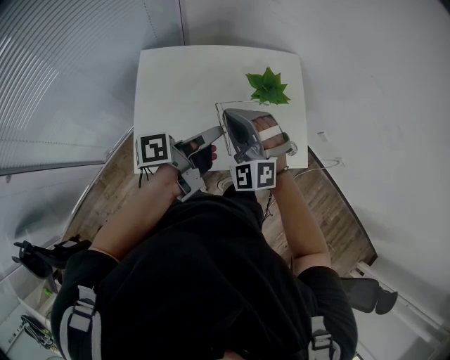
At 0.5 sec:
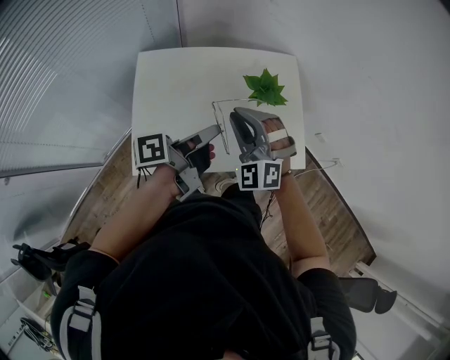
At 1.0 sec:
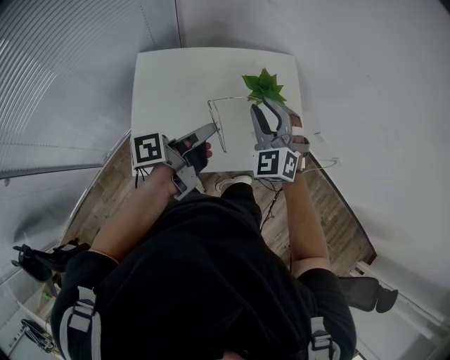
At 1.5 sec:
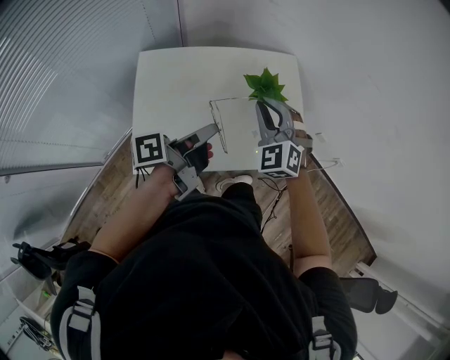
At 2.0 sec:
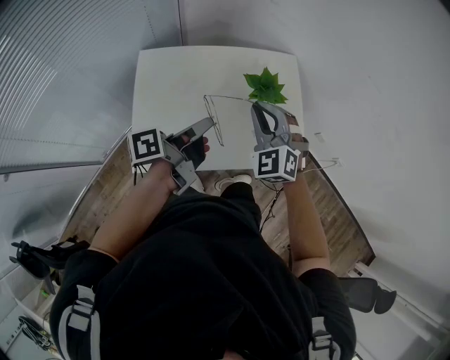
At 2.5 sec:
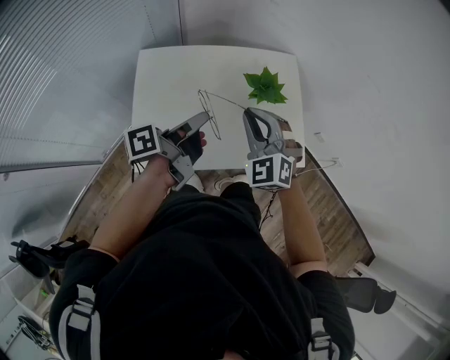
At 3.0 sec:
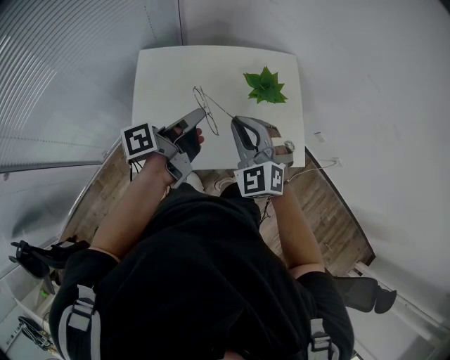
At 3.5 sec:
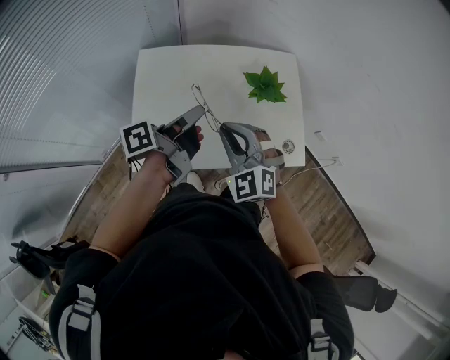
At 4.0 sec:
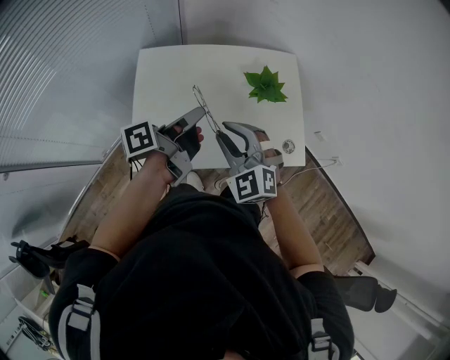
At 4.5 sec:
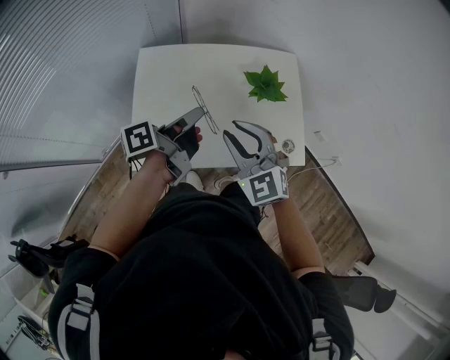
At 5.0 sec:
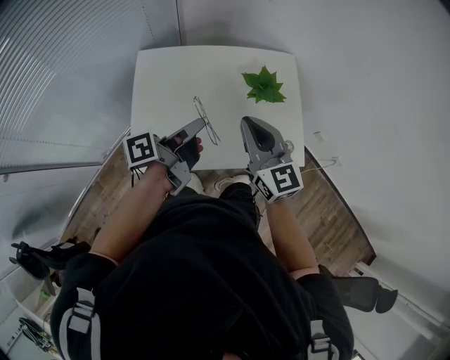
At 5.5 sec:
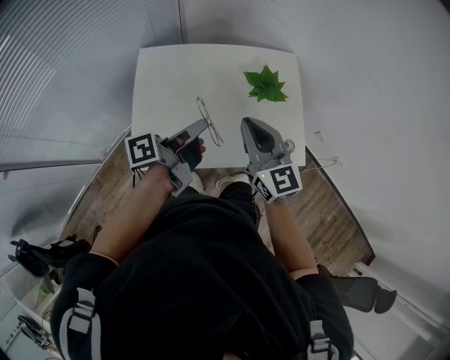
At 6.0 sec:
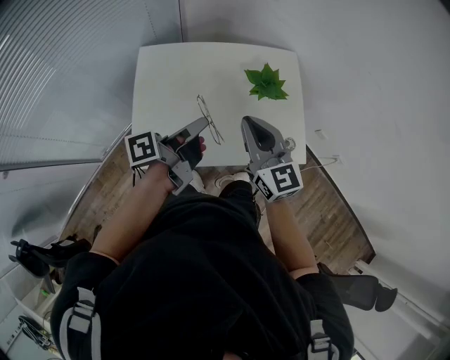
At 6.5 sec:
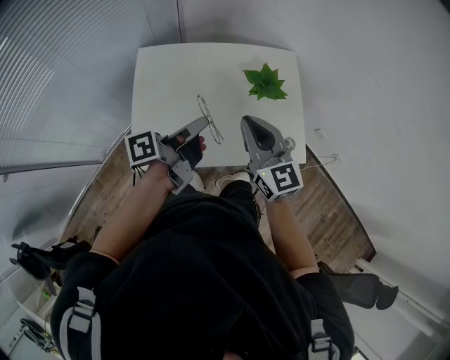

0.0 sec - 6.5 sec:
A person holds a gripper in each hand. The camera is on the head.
0.0 sec - 2.0 sec: The right gripper shifts by roughly 10 cm, and opens and closes again.
2.0 sec - 4.5 sec: The right gripper changes place by about 10 cm, changes its angle by some 20 degrees, and opens.
4.5 sec - 6.5 sec: The right gripper rotates roughly 30 degrees, and closes its fingers.

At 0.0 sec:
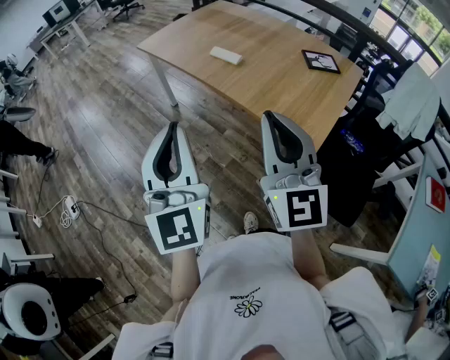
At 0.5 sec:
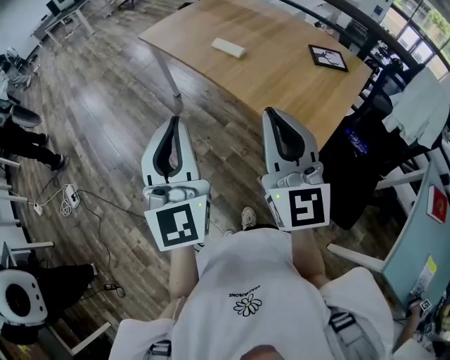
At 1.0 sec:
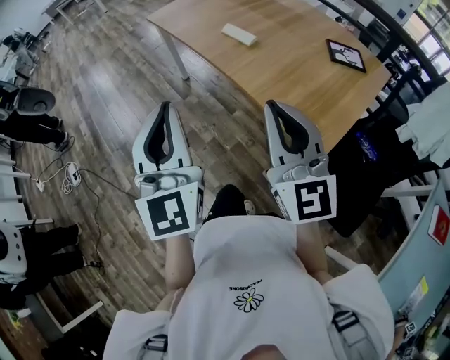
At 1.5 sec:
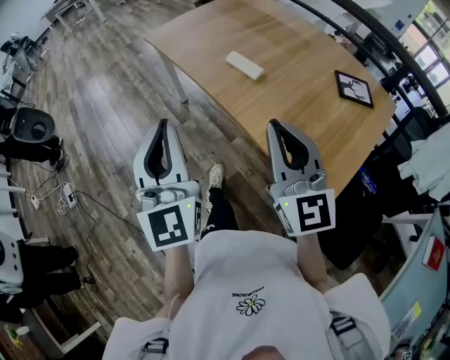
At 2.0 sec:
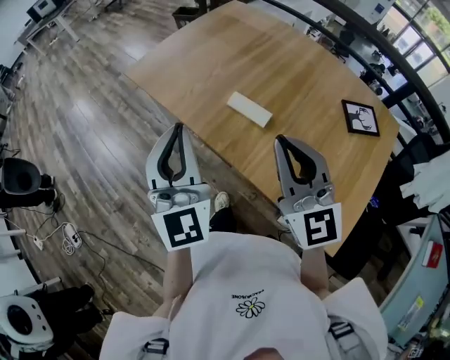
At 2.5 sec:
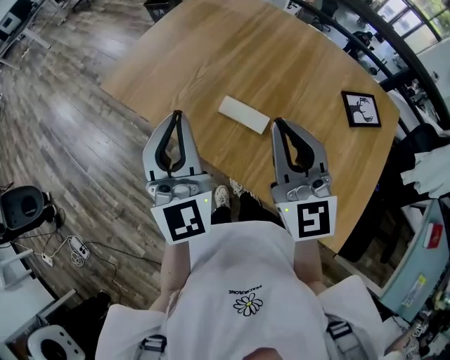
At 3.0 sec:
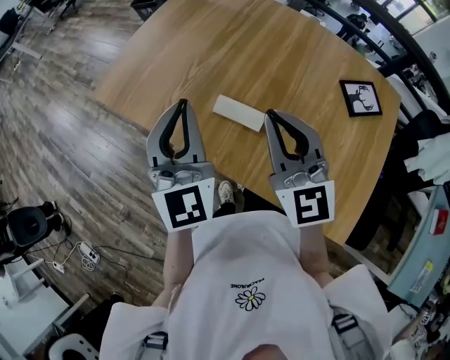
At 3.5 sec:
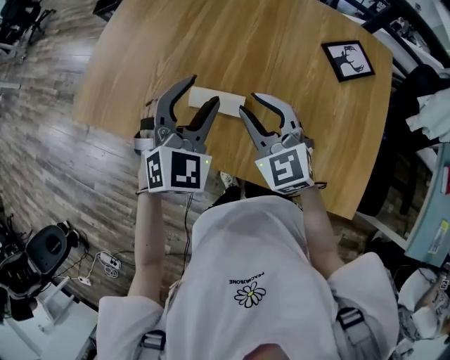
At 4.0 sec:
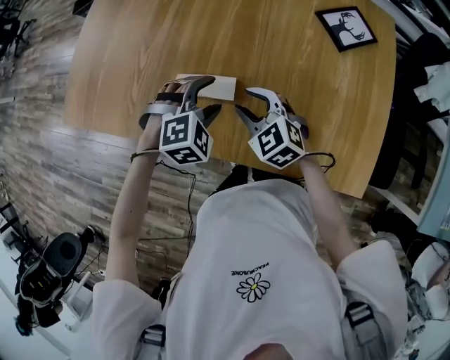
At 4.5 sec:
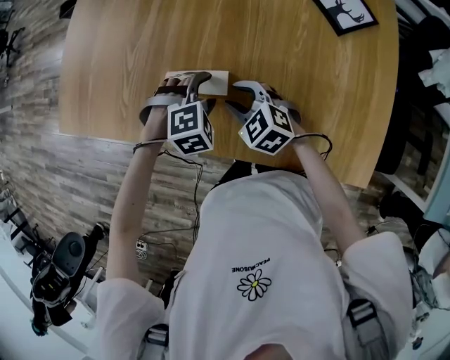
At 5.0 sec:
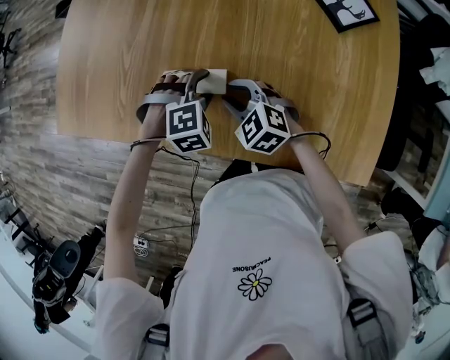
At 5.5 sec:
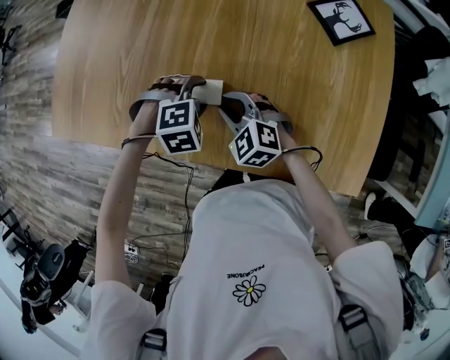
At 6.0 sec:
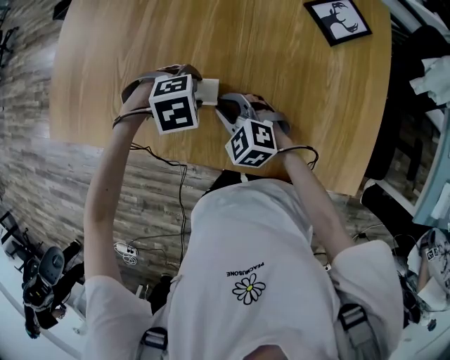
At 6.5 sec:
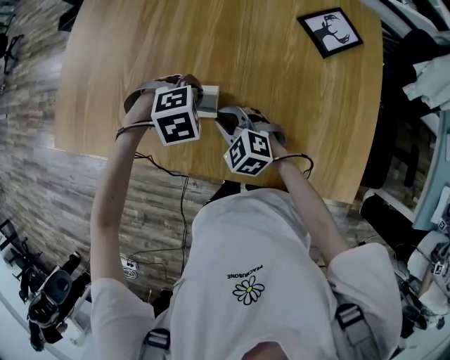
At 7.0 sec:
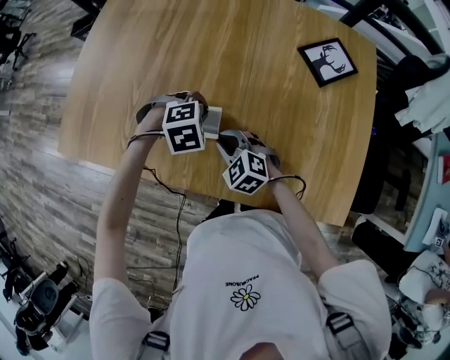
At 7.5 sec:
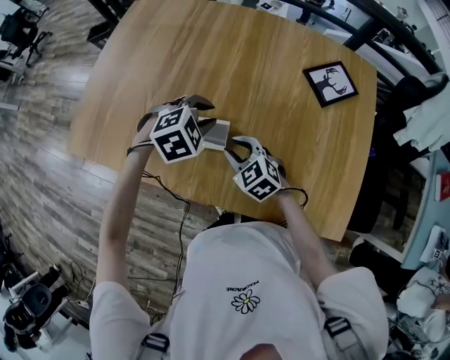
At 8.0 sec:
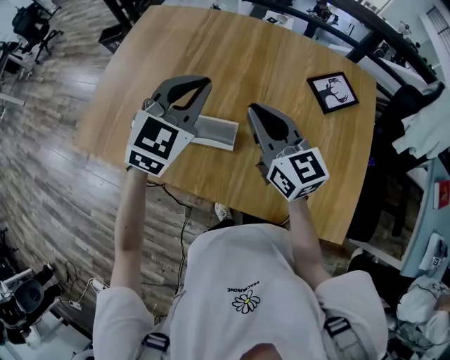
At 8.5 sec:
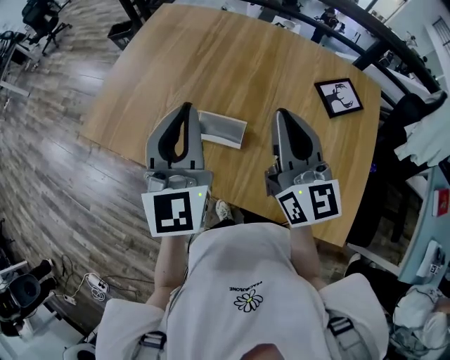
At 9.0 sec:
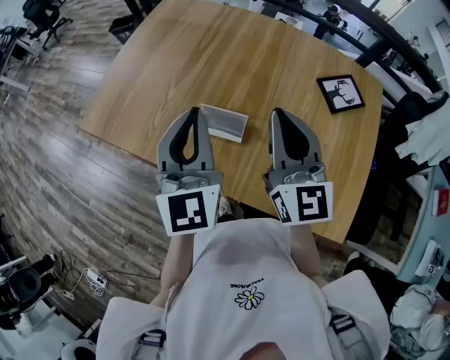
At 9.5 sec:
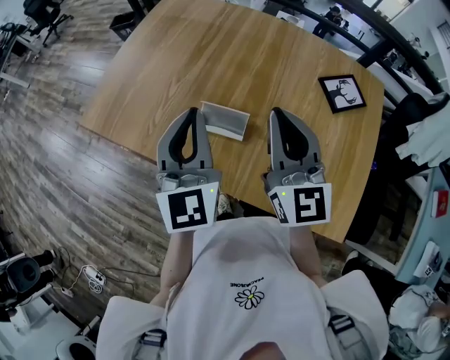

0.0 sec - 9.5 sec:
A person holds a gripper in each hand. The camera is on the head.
0.0 sec - 2.0 sec: The two grippers go some 40 cm forward.
2.0 sec - 4.0 sec: The grippers both shift downward by roughly 30 cm. The left gripper tips its fingers downward by about 70 degrees, and opens its fingers, while the right gripper tilts its fingers roughly 40 degrees downward, and opens its fingers.
4.0 sec - 5.5 sec: The right gripper ends up approximately 5 cm from where it was, while the left gripper goes approximately 5 cm downward.
5.5 sec - 7.5 sec: The left gripper moves upward, some 10 cm, and closes its fingers.
7.5 sec - 9.5 sec: The left gripper heads upward and to the left, covering approximately 25 cm, points its fingers about 60 degrees further upward, and closes its fingers. The right gripper travels upward by roughly 30 cm, tips its fingers upward by some 50 degrees, and closes.

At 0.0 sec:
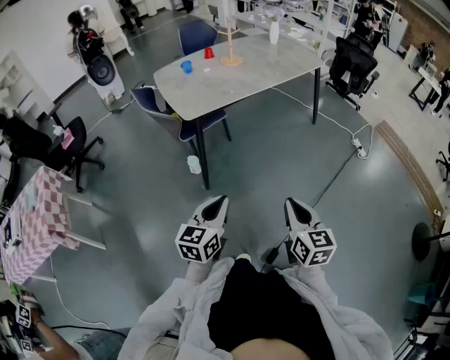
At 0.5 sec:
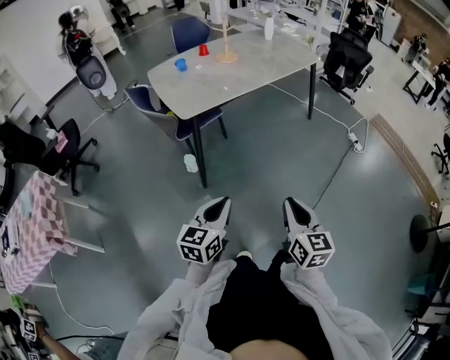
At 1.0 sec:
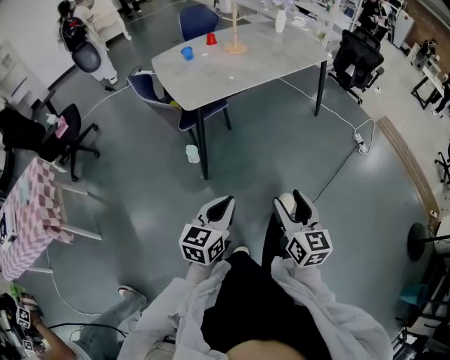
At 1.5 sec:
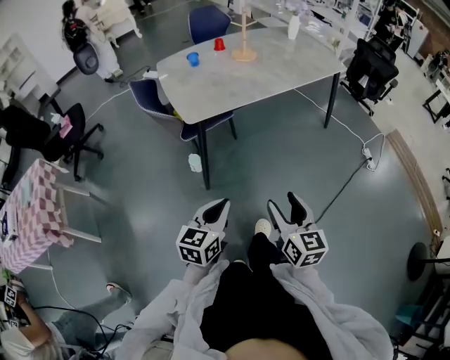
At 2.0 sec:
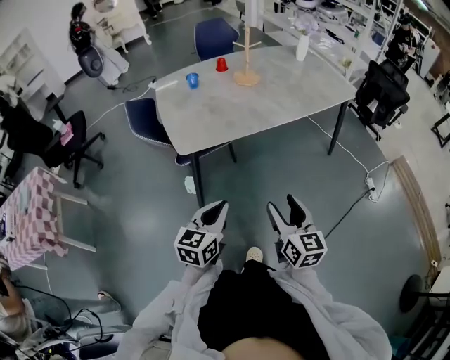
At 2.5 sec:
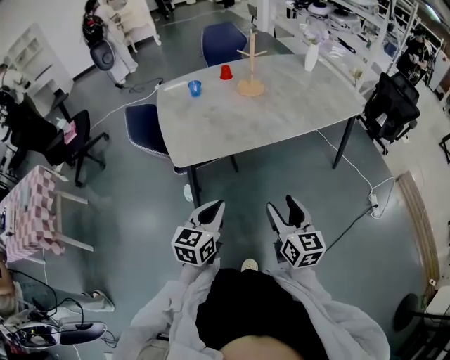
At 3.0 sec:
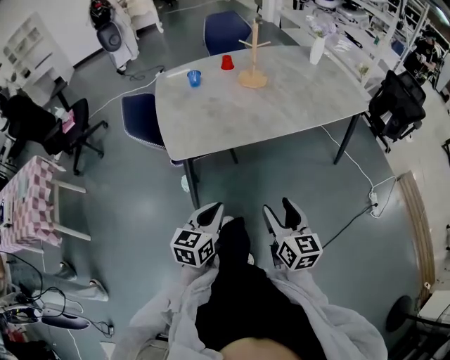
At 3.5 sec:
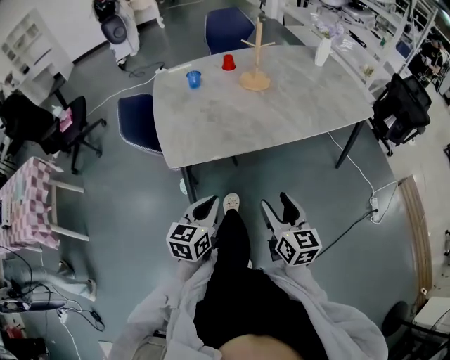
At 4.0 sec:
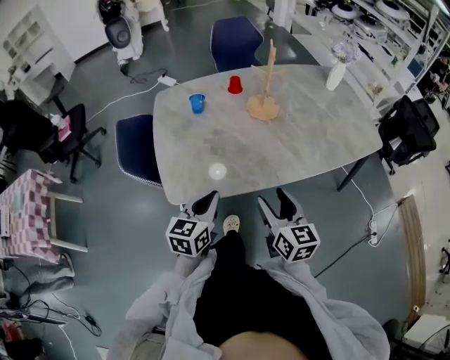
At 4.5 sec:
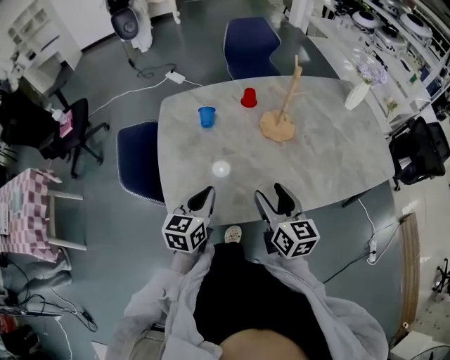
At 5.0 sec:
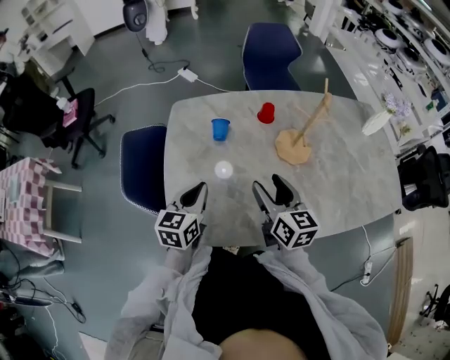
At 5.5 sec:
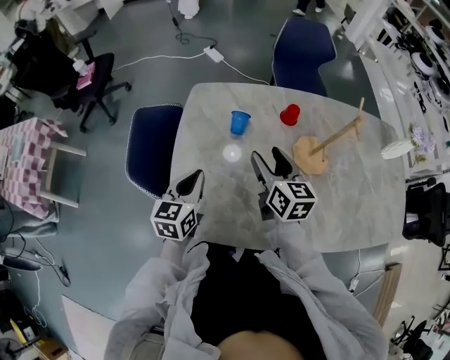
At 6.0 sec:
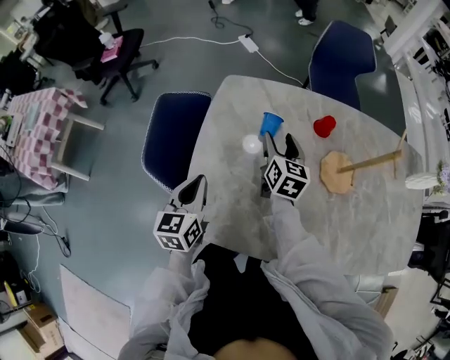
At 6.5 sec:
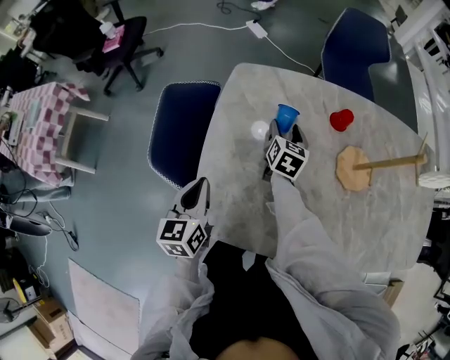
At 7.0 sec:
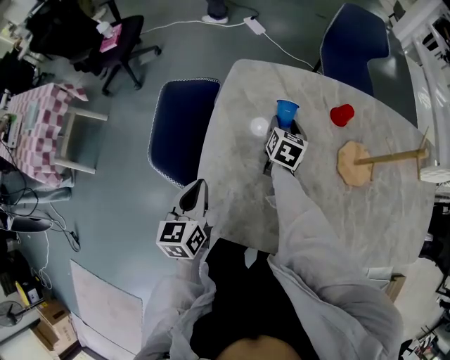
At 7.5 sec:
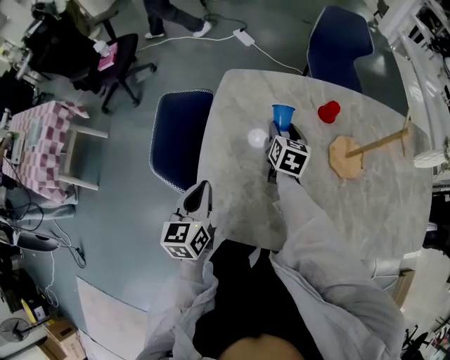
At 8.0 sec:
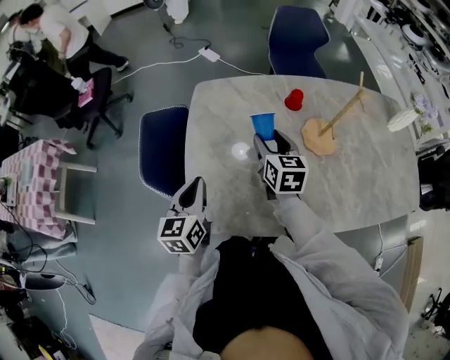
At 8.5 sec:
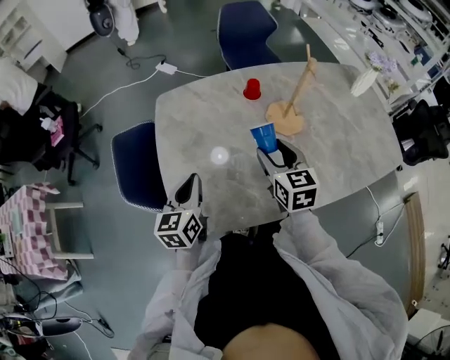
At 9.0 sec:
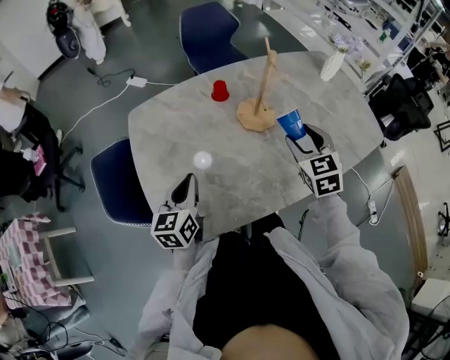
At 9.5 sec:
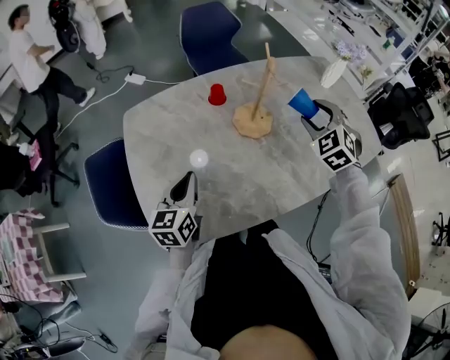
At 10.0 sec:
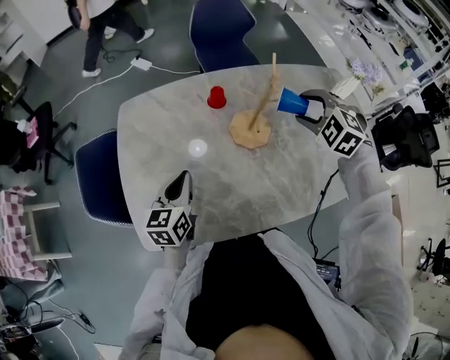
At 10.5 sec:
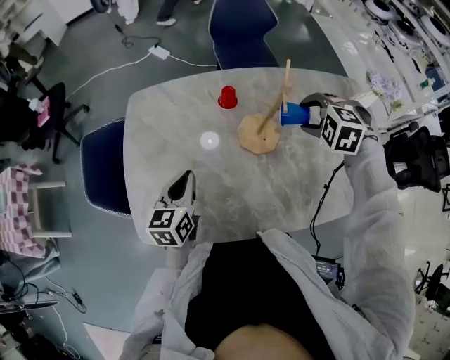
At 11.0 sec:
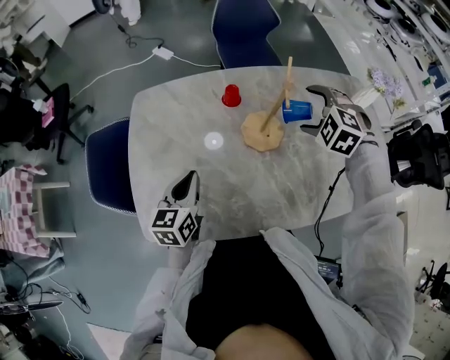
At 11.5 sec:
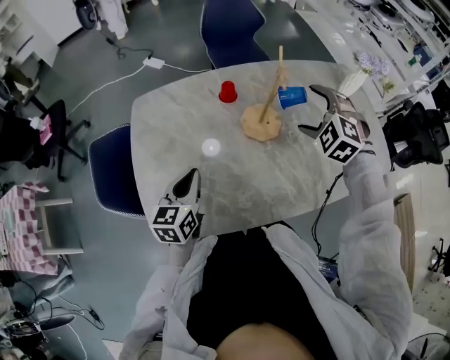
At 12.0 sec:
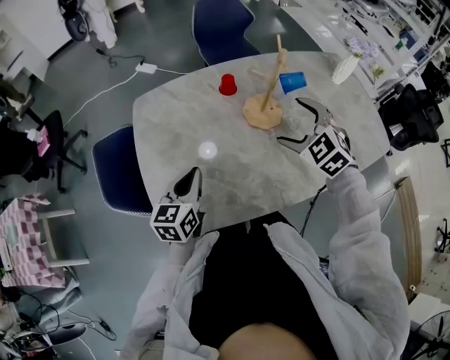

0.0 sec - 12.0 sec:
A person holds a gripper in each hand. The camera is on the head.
0.0 sec - 2.0 sec: Both grippers travel together forward, approximately 30 cm. The right gripper opens its fingers.
2.0 sec - 4.0 sec: Both grippers move forward, approximately 30 cm.
4.0 sec - 6.0 sec: The left gripper shifts some 30 cm forward and to the left, and changes its angle by some 40 degrees, while the right gripper shifts approximately 50 cm forward.
6.0 sec - 8.0 sec: The right gripper heads backward, covering roughly 10 cm, and reaches about 10 cm downward, then returns.
8.0 sec - 10.0 sec: The left gripper moves some 20 cm. Meanwhile the right gripper changes place by roughly 35 cm, and rolls counterclockwise, seen from behind, by roughly 70 degrees.
10.0 sec - 12.0 sec: The left gripper shifts about 5 cm backward; the right gripper is displaced backward and to the left by about 15 cm, rotates roughly 20 degrees, and opens its fingers.
